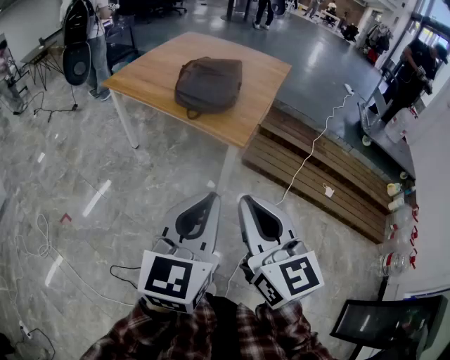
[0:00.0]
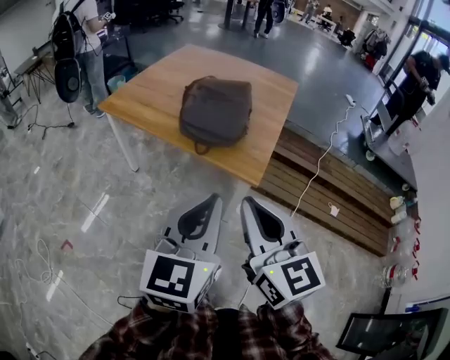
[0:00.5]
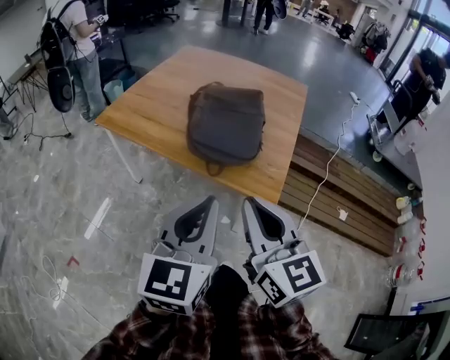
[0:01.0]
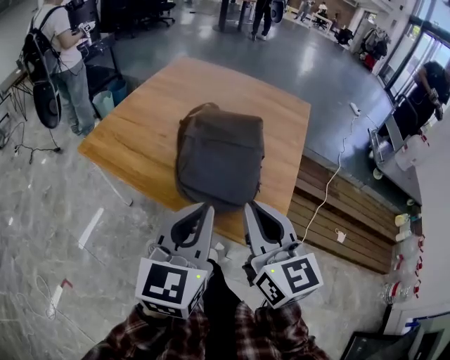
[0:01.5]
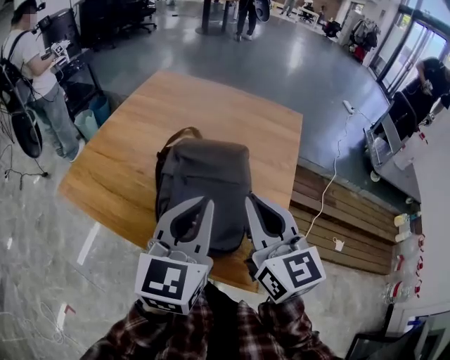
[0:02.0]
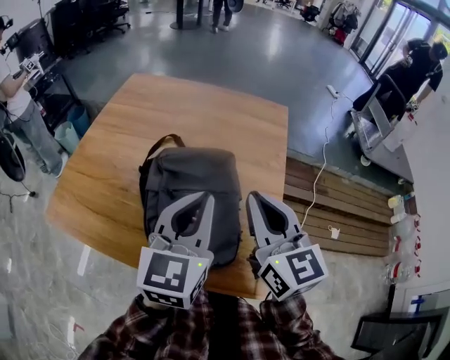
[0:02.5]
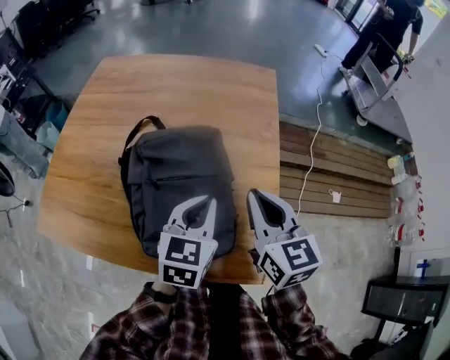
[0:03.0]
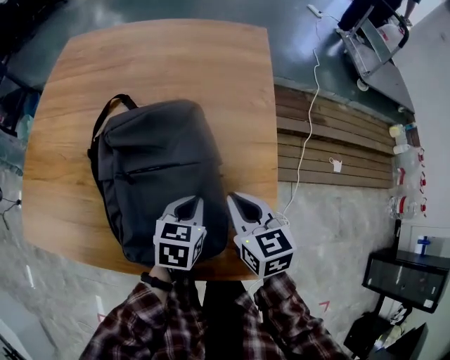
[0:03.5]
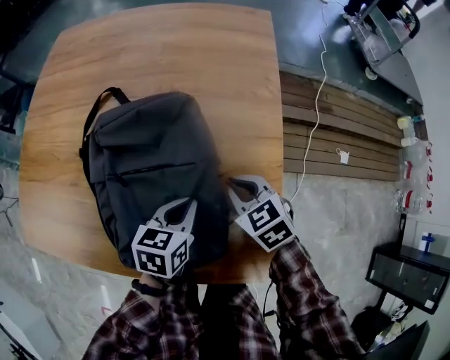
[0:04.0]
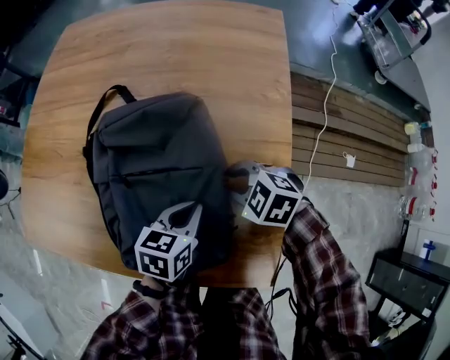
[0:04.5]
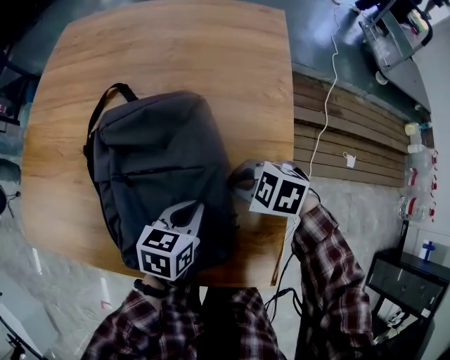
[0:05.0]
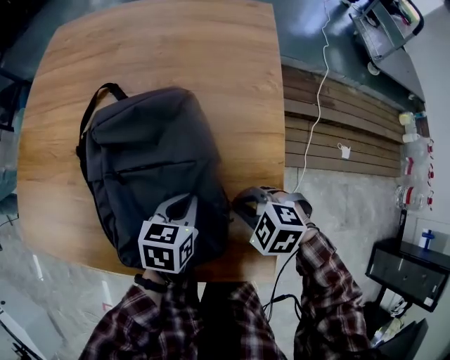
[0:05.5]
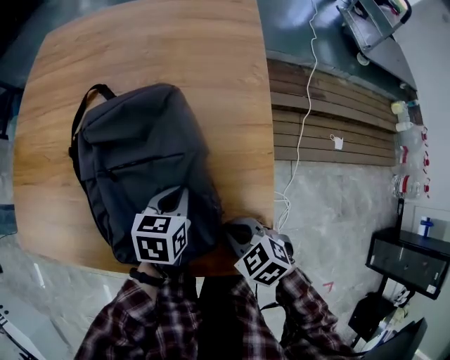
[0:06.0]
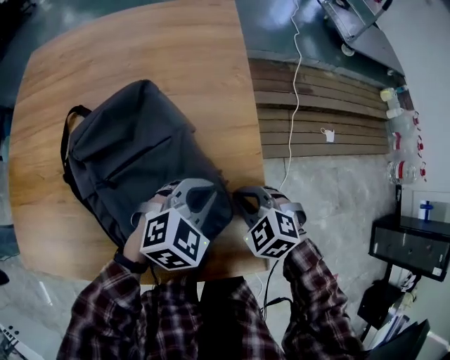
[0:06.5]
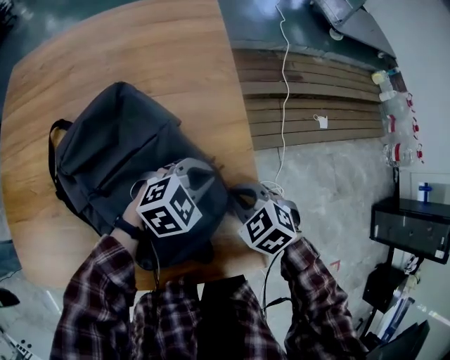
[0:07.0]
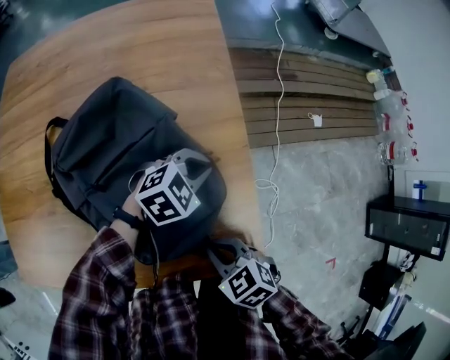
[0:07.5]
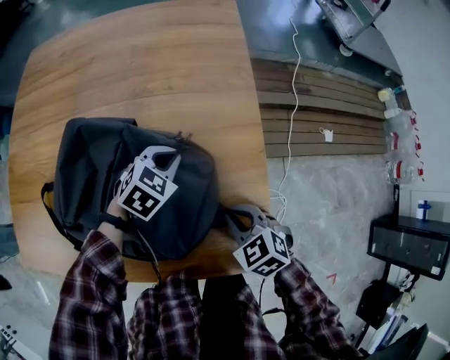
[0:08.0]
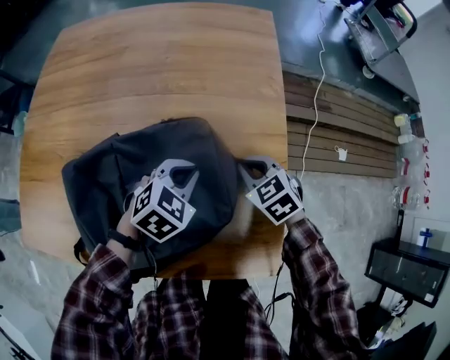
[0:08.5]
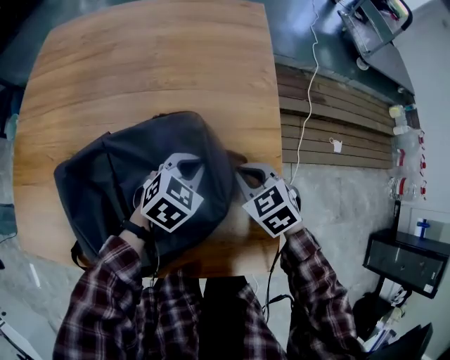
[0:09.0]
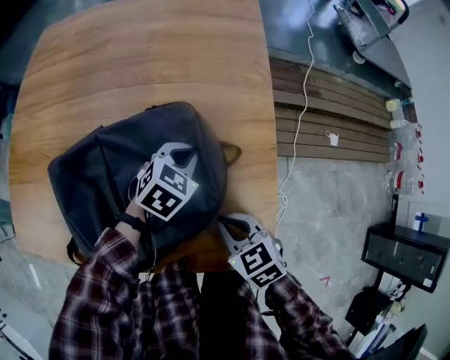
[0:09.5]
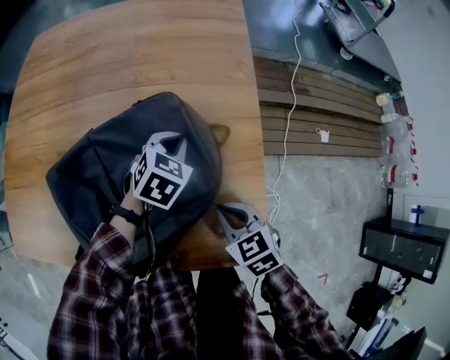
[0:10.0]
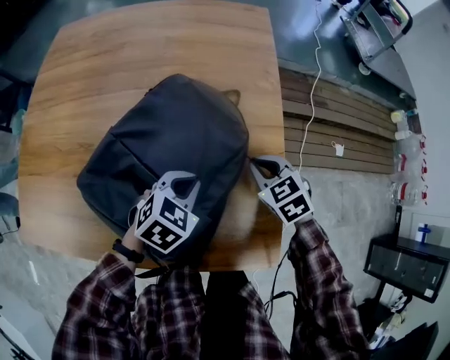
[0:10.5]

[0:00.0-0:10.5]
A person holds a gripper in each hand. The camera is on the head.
0:00.0 to 0:02.0: The pair of grippers is taken forward, about 60 cm.
0:02.0 to 0:04.0: Both grippers move downward, about 30 cm. The right gripper tips its fingers downward by some 40 degrees; the left gripper points its fingers roughly 40 degrees further downward.
0:04.0 to 0:06.5: The right gripper rotates approximately 20 degrees. Meanwhile the left gripper changes place by roughly 10 cm, and twists approximately 60 degrees clockwise, seen from behind.
0:06.5 to 0:08.5: The right gripper ends up some 10 cm from where it was; the left gripper ends up about 10 cm from where it was.
0:08.5 to 0:10.5: The right gripper travels backward and back again, some 15 cm each way.

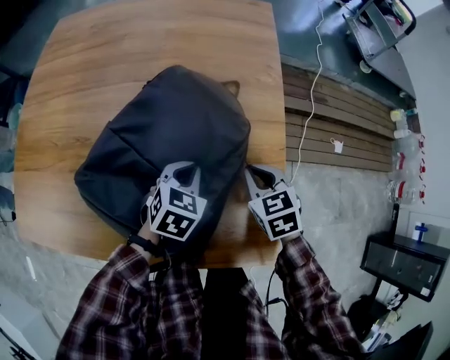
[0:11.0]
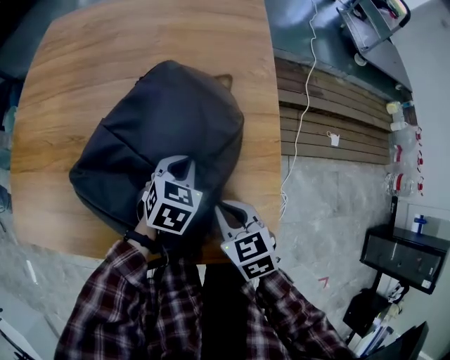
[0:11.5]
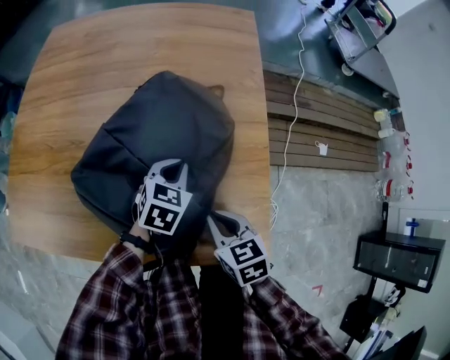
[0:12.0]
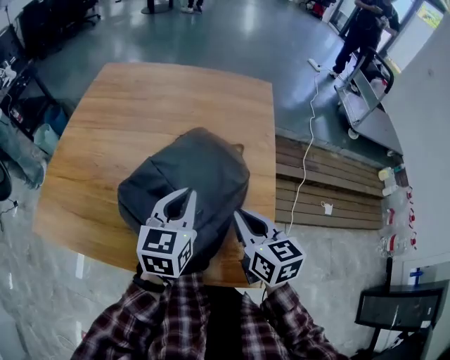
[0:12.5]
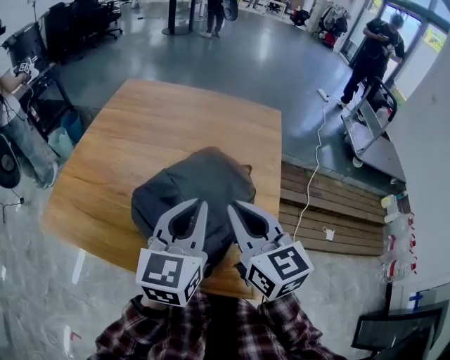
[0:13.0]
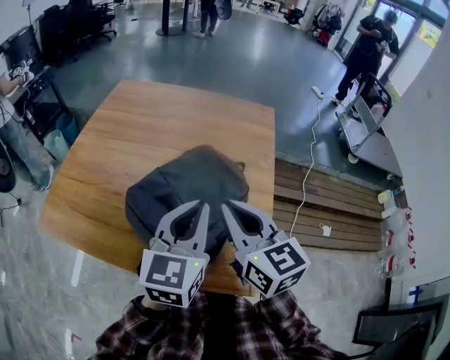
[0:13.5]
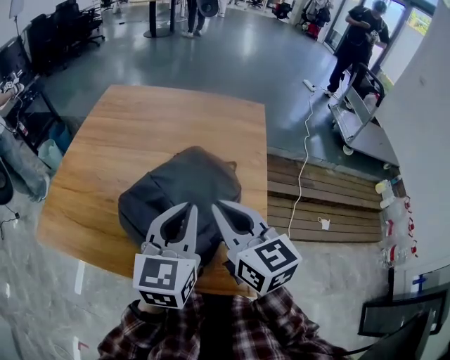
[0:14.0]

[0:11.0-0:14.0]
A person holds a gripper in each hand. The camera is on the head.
0:11.0 to 0:12.5: The two grippers go roughly 20 cm upward. The right gripper changes its angle by about 30 degrees. Meanwhile the left gripper points its fingers roughly 30 degrees further upward.
0:12.5 to 0:14.0: The left gripper is displaced upward and backward by roughly 10 cm; the right gripper shifts some 15 cm upward and to the left.

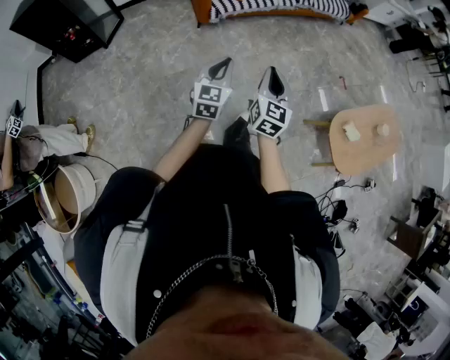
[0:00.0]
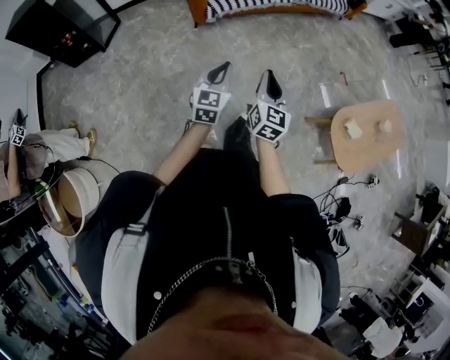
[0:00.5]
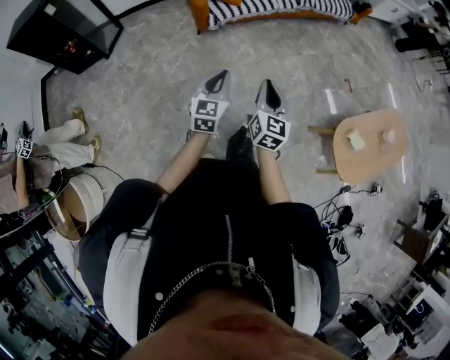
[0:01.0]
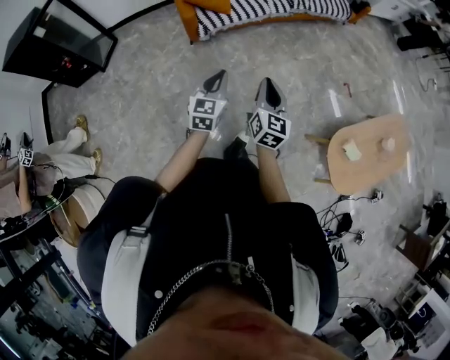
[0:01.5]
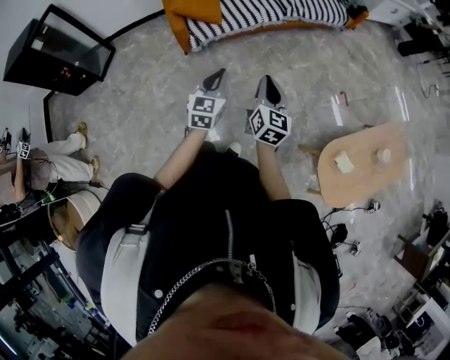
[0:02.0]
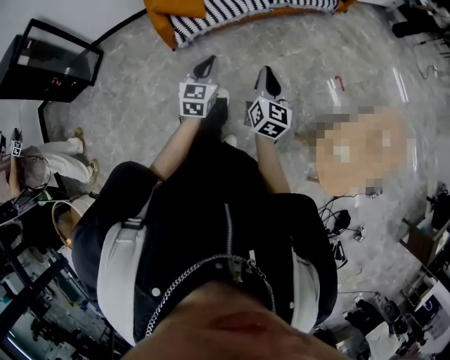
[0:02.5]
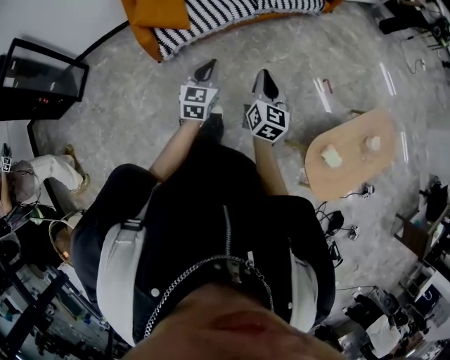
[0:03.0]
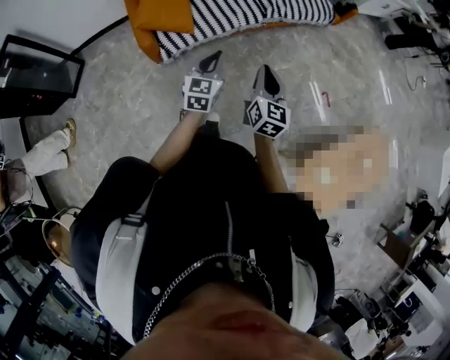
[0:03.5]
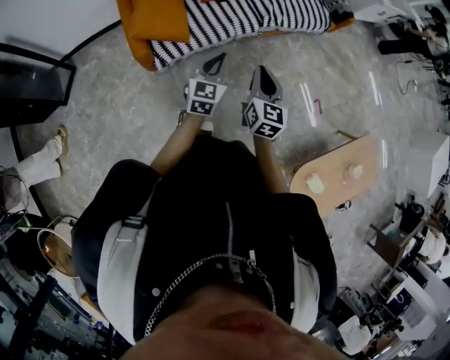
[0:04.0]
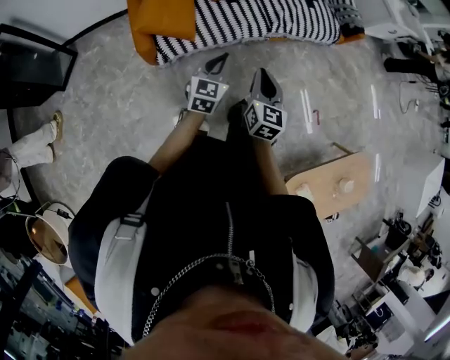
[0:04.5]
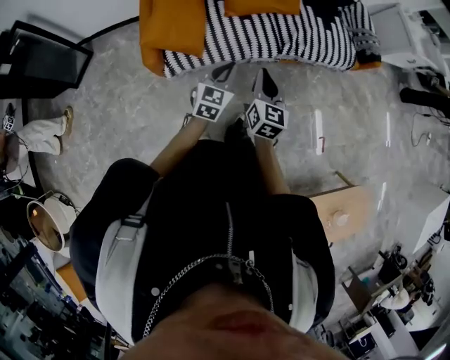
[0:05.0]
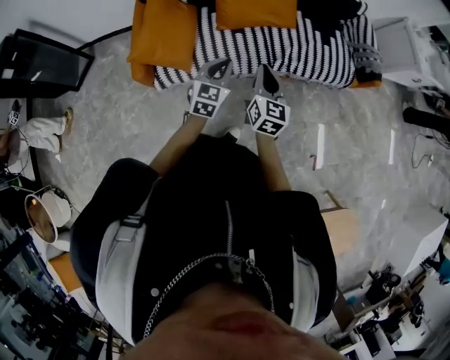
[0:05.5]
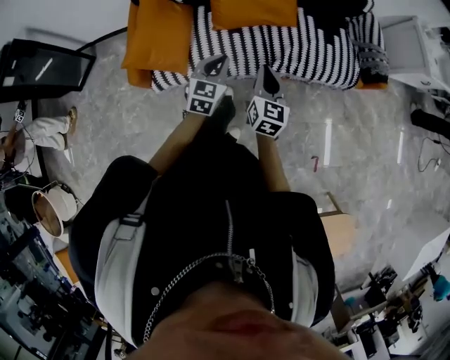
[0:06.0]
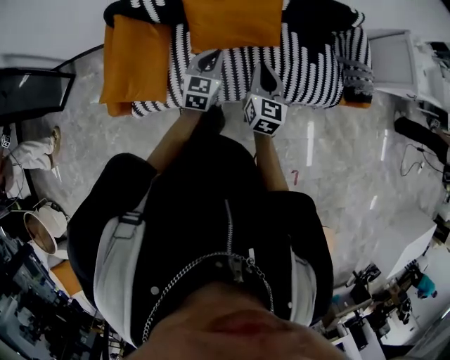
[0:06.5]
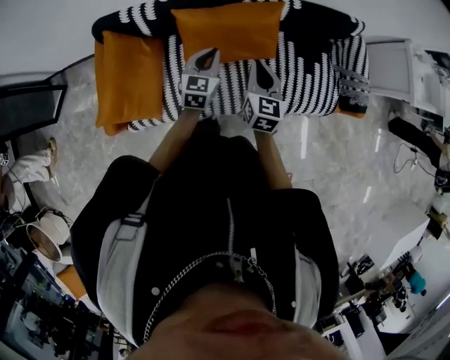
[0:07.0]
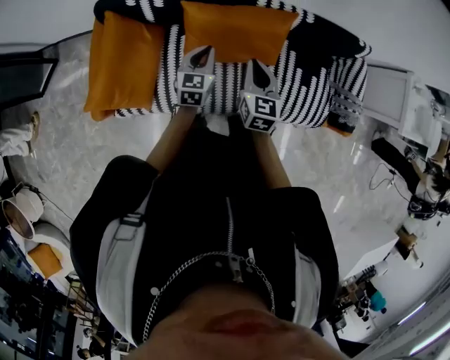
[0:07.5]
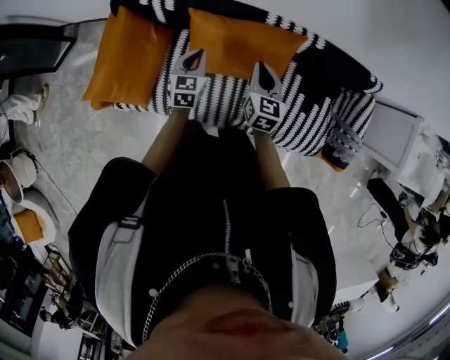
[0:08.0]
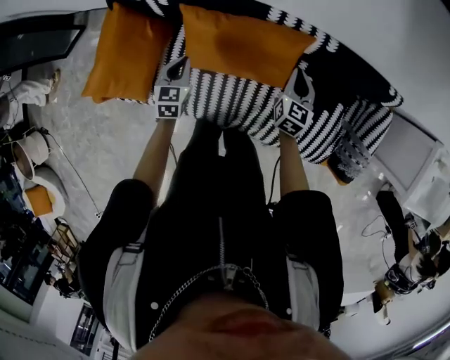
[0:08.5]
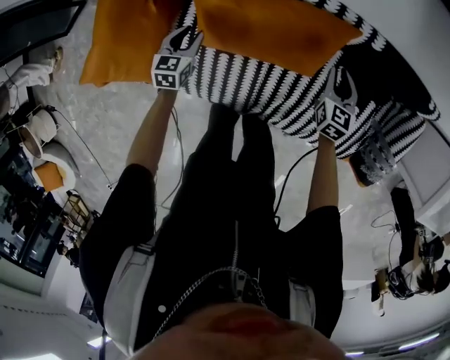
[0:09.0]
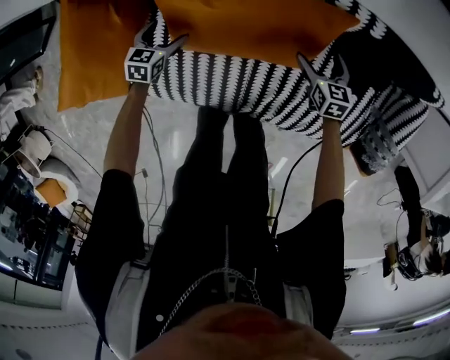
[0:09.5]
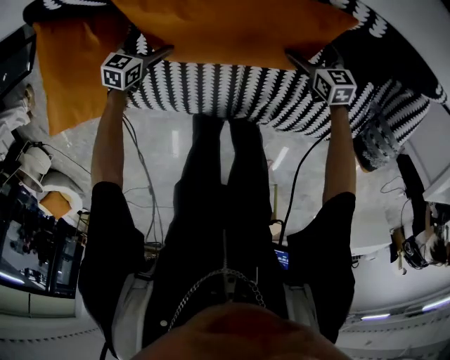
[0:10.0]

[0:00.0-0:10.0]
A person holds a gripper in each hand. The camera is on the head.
0:00.0 to 0:02.0: Both grippers move forward and to the right, about 30 cm.
0:02.0 to 0:04.0: The grippers both shift forward by some 30 cm.
0:04.0 to 0:06.0: The grippers both shift forward by about 35 cm.
0:06.0 to 0:08.0: Both grippers are carried forward, some 40 cm. The right gripper swivels about 20 degrees. Meanwhile the left gripper turns by some 30 degrees.
0:08.0 to 0:10.0: The two grippers go roughly 35 cm downward. The left gripper changes its angle by some 40 degrees, and opens its fingers; the right gripper changes its angle by approximately 40 degrees, and opens up.

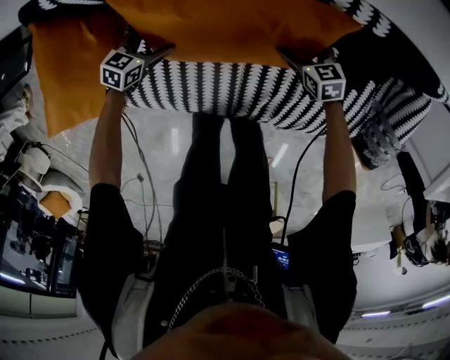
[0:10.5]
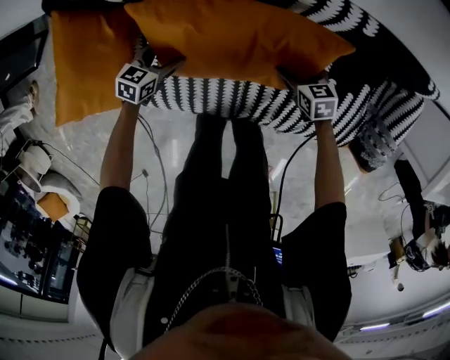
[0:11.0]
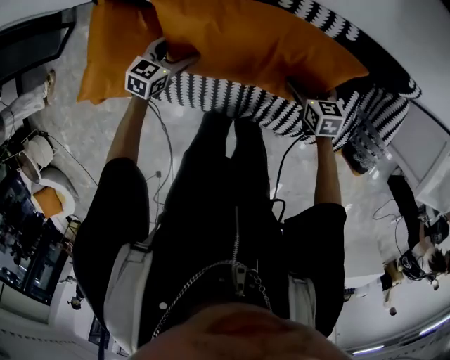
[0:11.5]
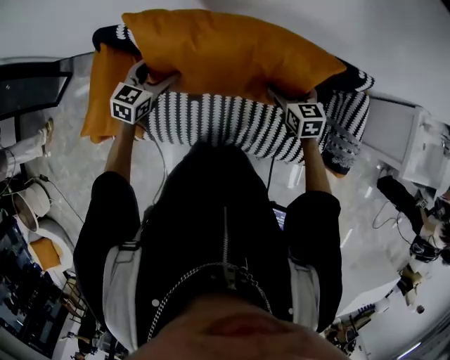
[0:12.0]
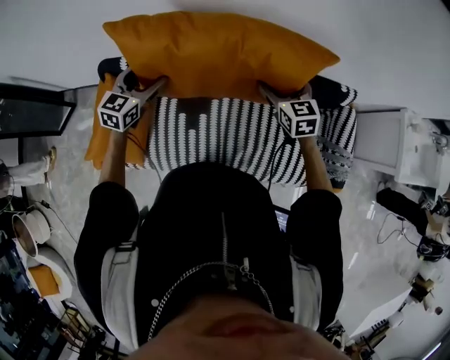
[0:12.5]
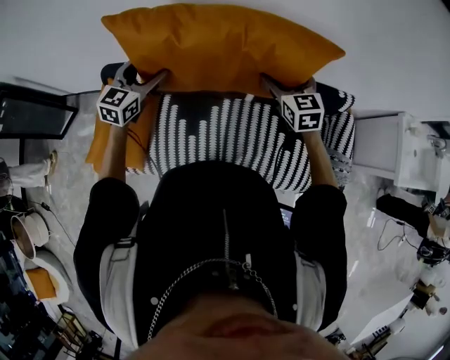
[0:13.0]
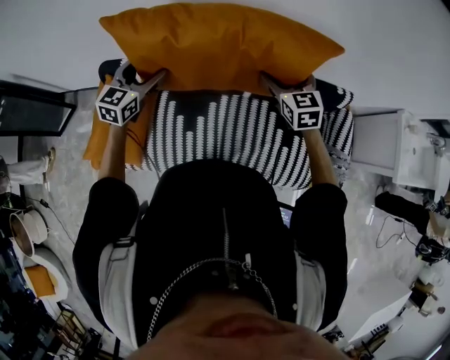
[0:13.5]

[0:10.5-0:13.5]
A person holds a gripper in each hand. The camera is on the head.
0:10.5 to 0:12.0: Both grippers travel together upward, about 35 cm. The right gripper rotates approximately 20 degrees. The left gripper rotates about 30 degrees.
0:12.0 to 0:13.5: The grippers both shift upward by roughly 15 cm.
